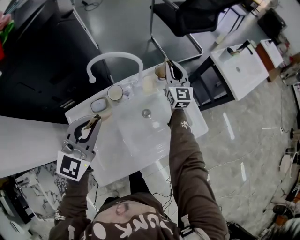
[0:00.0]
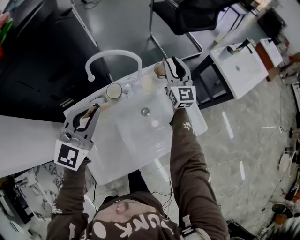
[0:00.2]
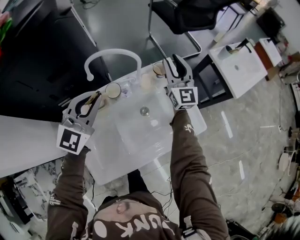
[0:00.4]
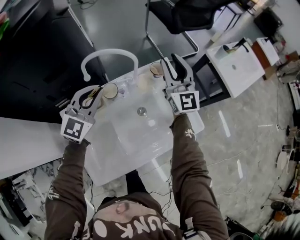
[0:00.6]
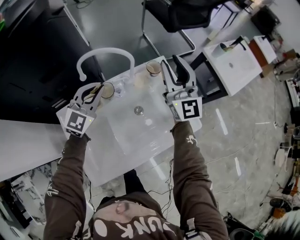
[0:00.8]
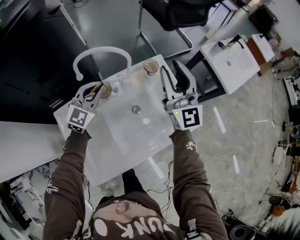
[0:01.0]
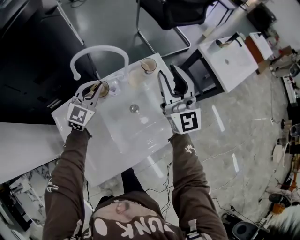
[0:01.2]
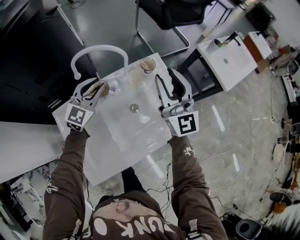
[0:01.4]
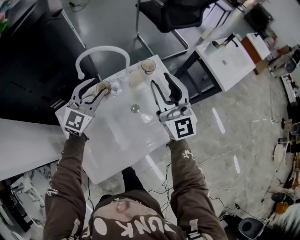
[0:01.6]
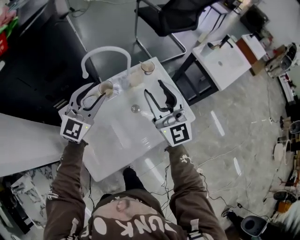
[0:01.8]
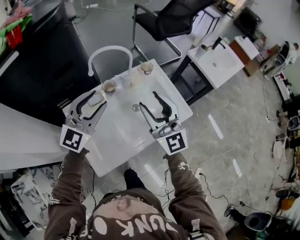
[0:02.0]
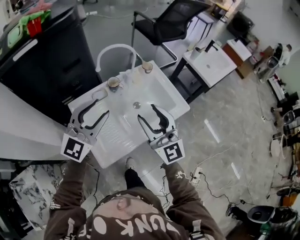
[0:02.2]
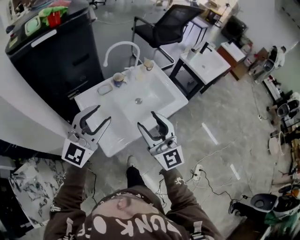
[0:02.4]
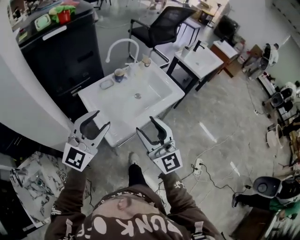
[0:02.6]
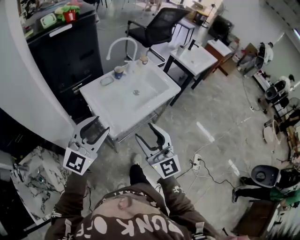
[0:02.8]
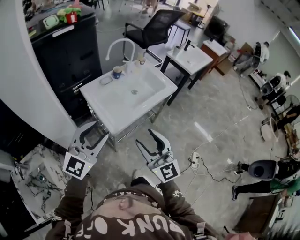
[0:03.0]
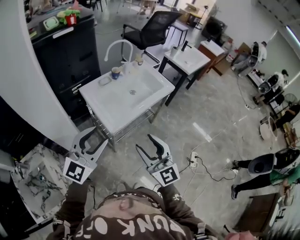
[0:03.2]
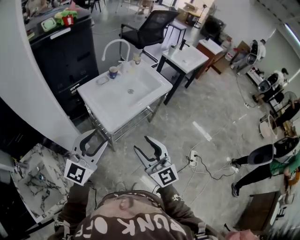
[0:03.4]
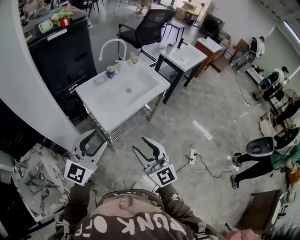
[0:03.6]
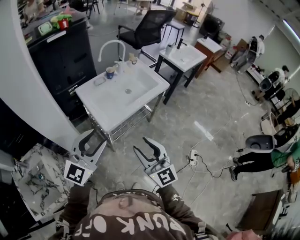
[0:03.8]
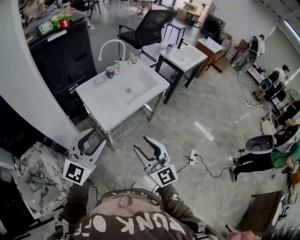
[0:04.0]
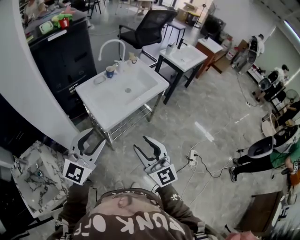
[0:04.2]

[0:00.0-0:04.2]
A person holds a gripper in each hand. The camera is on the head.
0:00.0 to 0:01.4: The right gripper is displaced backward and upward by about 20 cm, and opens up, while the left gripper shifts roughly 15 cm forward and downward.
0:01.4 to 0:02.8: The two grippers travel together, backward, about 60 cm. The left gripper turns by about 20 degrees, and opens its fingers.
0:02.8 to 0:04.2: The right gripper moves backward and to the right, about 15 cm; the left gripper moves backward, approximately 10 cm.

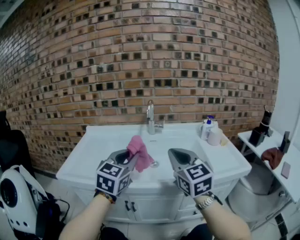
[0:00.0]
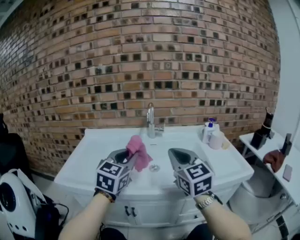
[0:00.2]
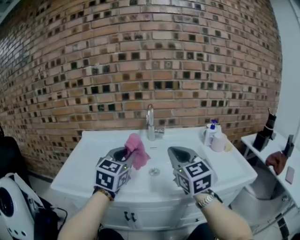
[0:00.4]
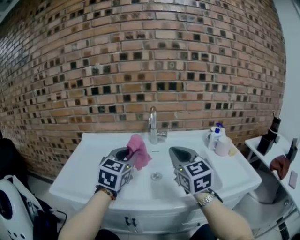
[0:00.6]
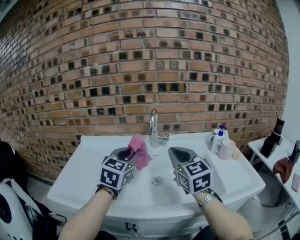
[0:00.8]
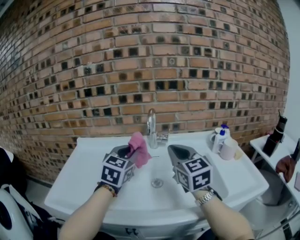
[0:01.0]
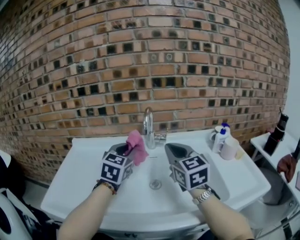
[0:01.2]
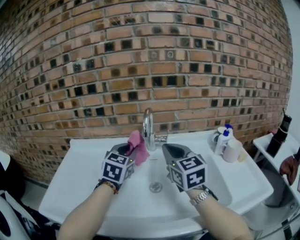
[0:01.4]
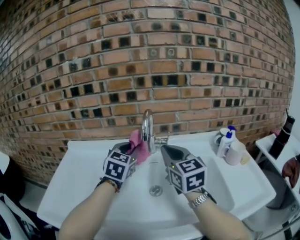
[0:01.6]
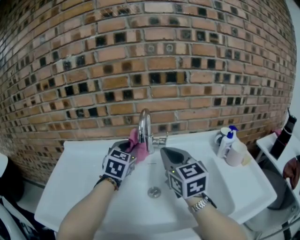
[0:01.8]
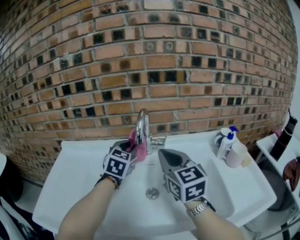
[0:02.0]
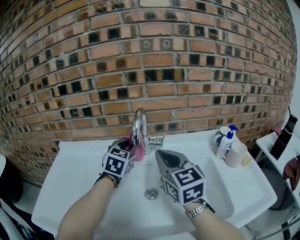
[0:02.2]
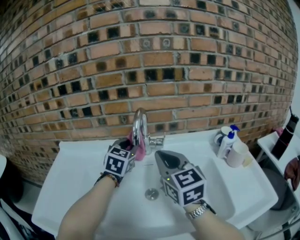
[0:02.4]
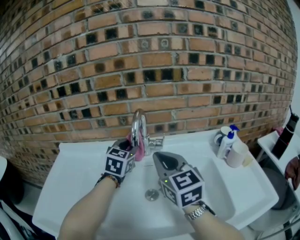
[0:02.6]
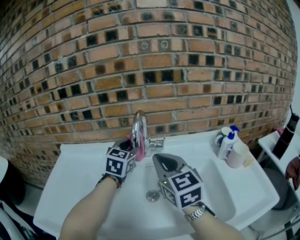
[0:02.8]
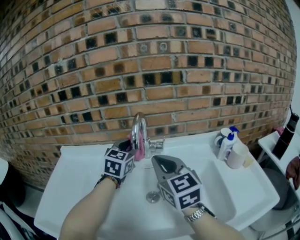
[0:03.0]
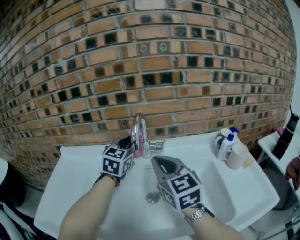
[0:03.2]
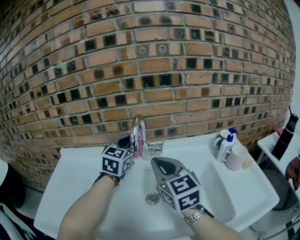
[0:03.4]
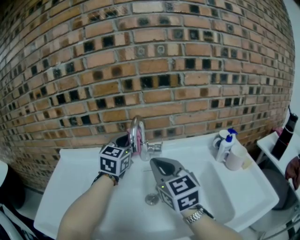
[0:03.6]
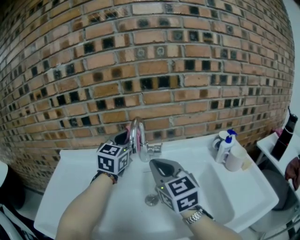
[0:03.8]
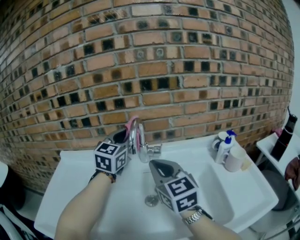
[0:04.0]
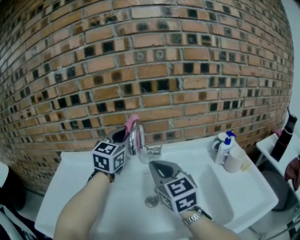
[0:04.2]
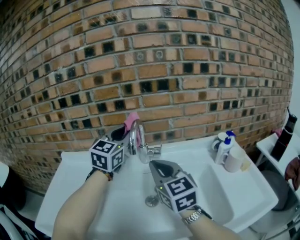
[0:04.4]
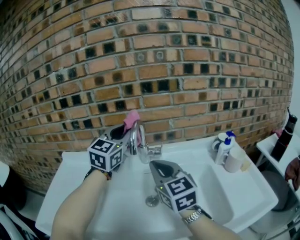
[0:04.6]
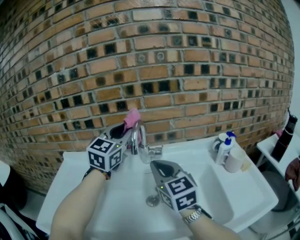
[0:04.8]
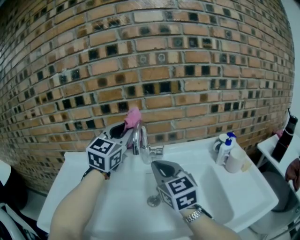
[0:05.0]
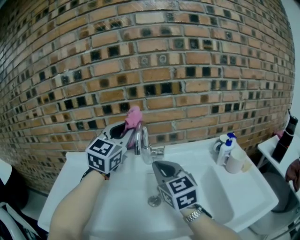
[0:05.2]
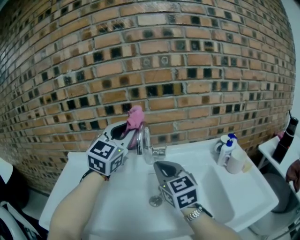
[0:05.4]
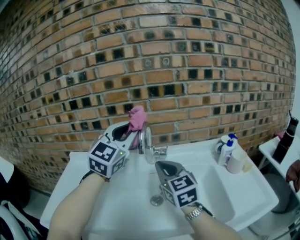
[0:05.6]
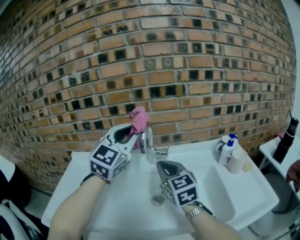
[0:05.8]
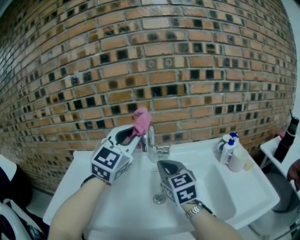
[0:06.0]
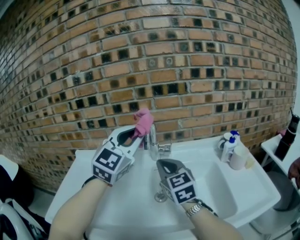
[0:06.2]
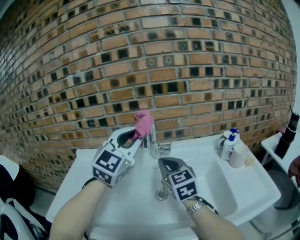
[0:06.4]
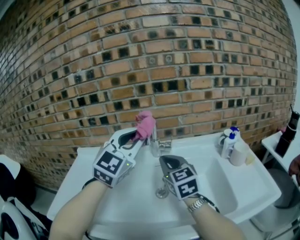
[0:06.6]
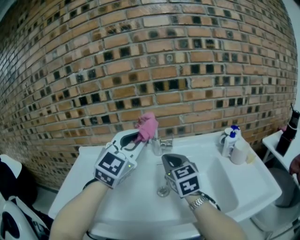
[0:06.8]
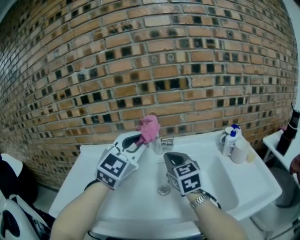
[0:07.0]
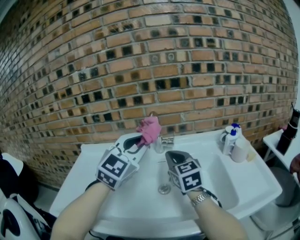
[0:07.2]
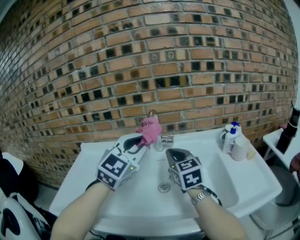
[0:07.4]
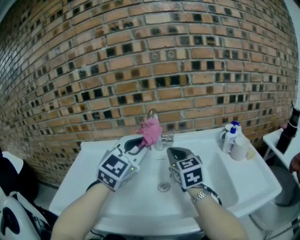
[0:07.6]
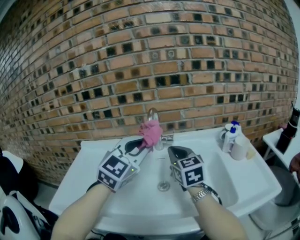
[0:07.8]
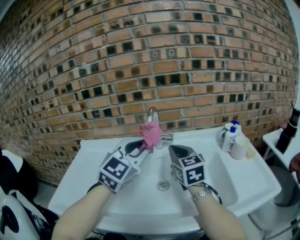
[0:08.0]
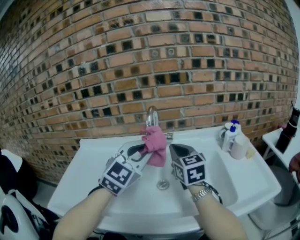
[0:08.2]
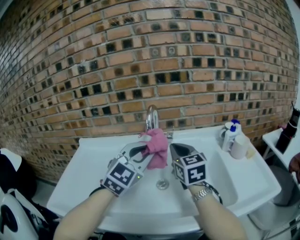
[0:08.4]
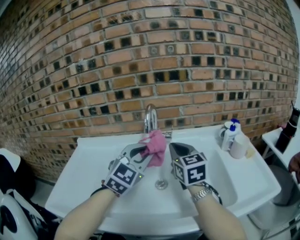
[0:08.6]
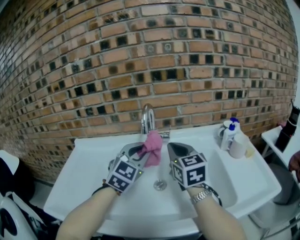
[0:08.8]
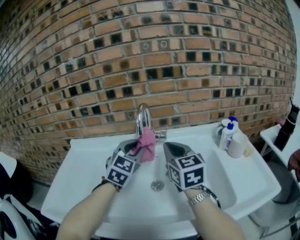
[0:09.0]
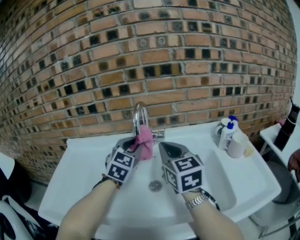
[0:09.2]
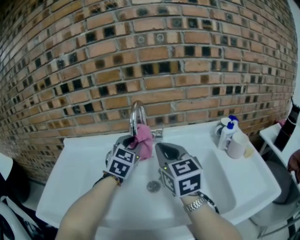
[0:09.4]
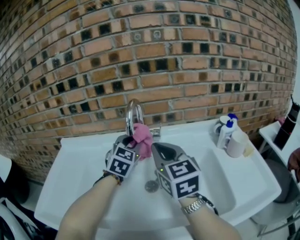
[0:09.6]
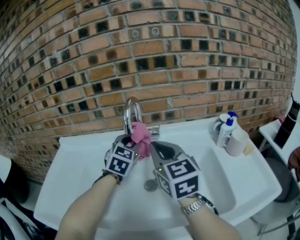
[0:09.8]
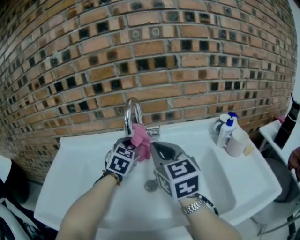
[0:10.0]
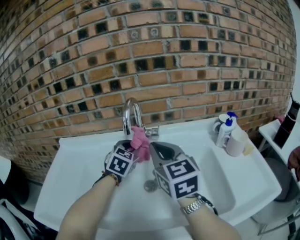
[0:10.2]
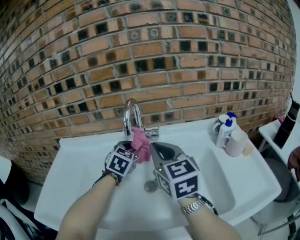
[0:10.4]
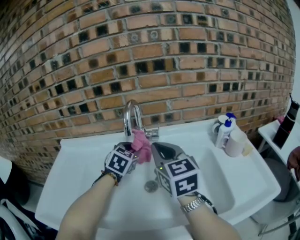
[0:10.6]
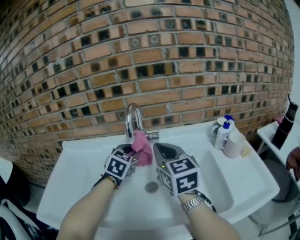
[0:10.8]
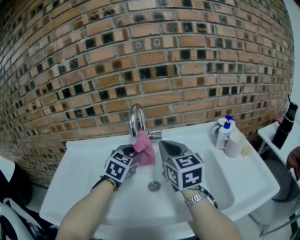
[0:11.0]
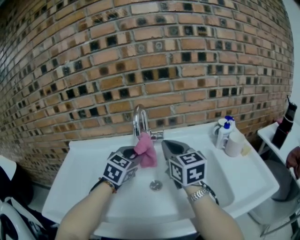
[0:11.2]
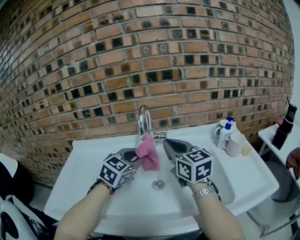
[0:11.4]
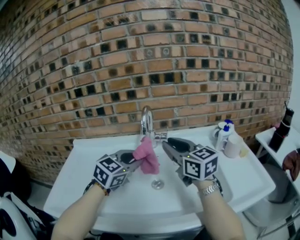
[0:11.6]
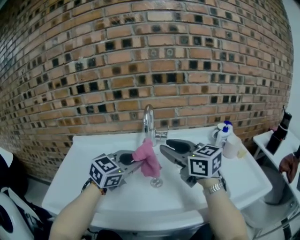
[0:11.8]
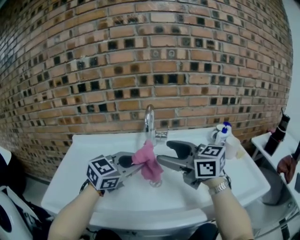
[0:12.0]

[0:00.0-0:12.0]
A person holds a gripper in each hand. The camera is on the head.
0:00.0 to 0:01.6: The two grippers go approximately 30 cm forward.
0:01.6 to 0:03.0: The left gripper travels forward by roughly 5 cm.
0:03.0 to 0:04.4: The left gripper moves upward, some 10 cm.
0:04.4 to 0:06.0: The left gripper goes some 10 cm backward and upward.
0:06.0 to 0:07.6: The left gripper travels downward and backward by about 10 cm.
0:07.6 to 0:09.0: The left gripper is displaced downward and forward by some 10 cm.
0:09.0 to 0:10.4: The left gripper shifts approximately 10 cm downward and forward.
0:10.4 to 0:12.0: The left gripper heads backward and upward, covering about 20 cm, and changes its angle by about 40 degrees. The right gripper heads backward, covering roughly 10 cm, swivels some 30 degrees, and opens its fingers.

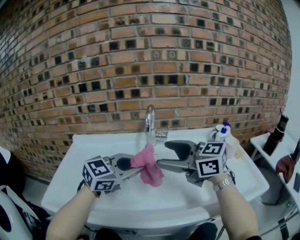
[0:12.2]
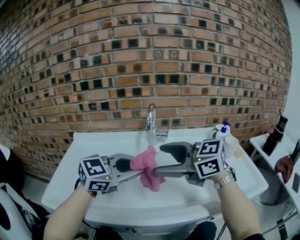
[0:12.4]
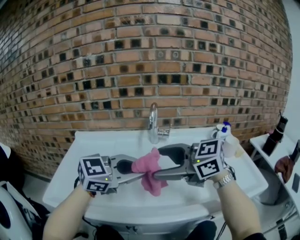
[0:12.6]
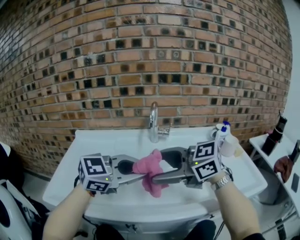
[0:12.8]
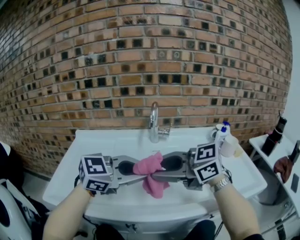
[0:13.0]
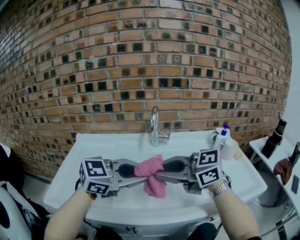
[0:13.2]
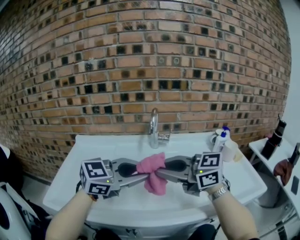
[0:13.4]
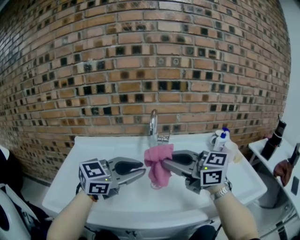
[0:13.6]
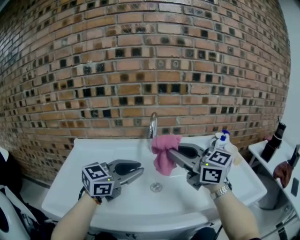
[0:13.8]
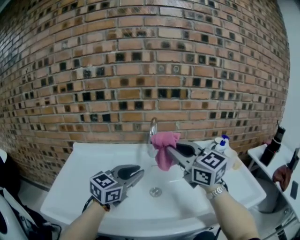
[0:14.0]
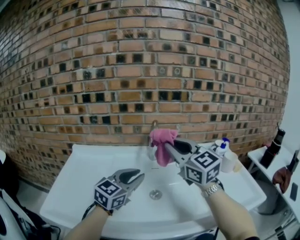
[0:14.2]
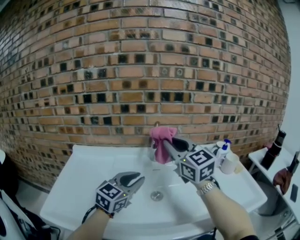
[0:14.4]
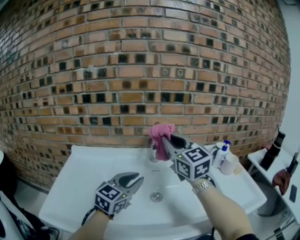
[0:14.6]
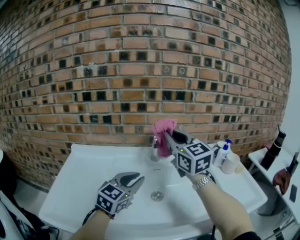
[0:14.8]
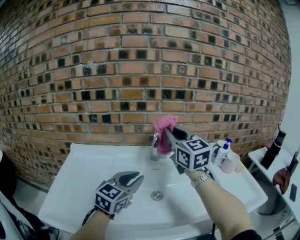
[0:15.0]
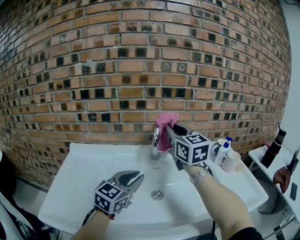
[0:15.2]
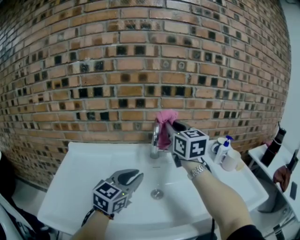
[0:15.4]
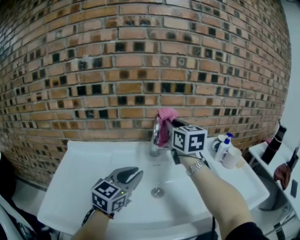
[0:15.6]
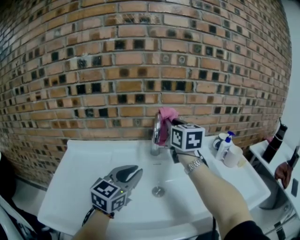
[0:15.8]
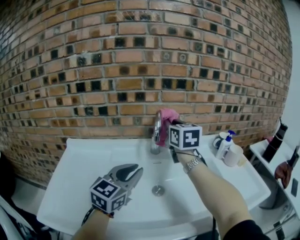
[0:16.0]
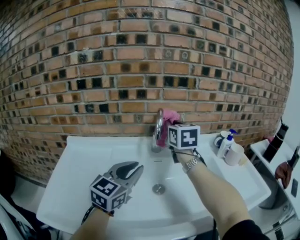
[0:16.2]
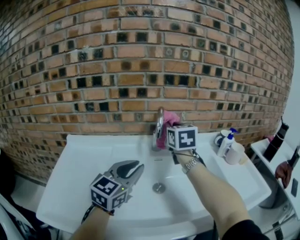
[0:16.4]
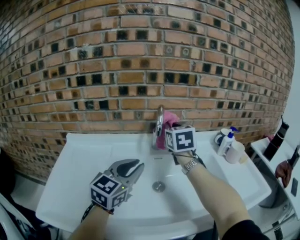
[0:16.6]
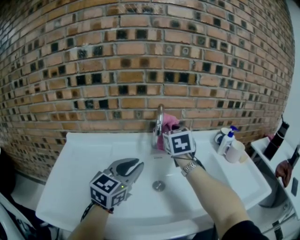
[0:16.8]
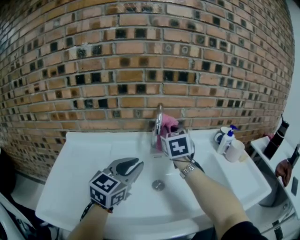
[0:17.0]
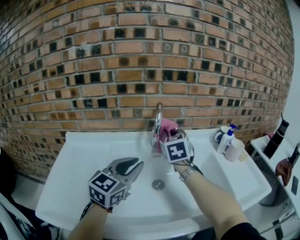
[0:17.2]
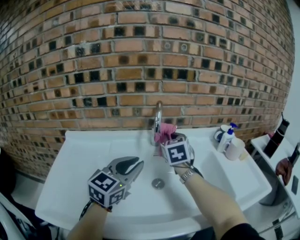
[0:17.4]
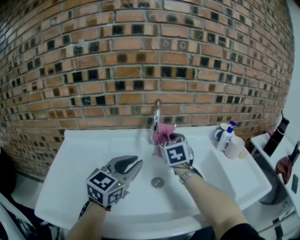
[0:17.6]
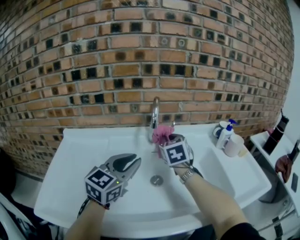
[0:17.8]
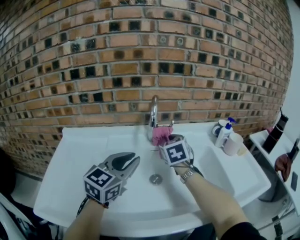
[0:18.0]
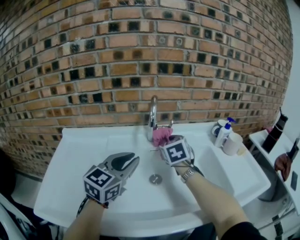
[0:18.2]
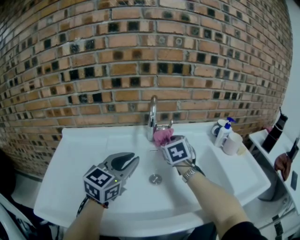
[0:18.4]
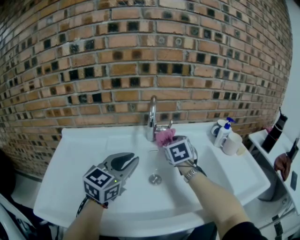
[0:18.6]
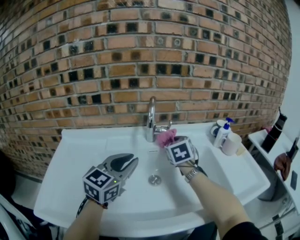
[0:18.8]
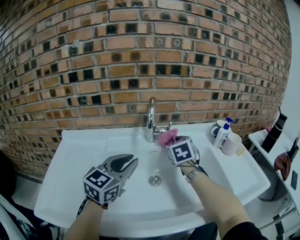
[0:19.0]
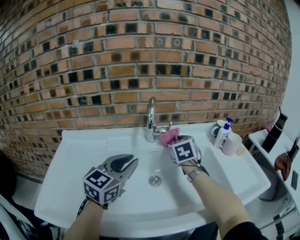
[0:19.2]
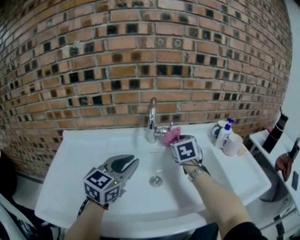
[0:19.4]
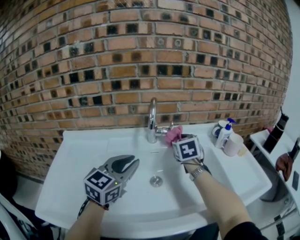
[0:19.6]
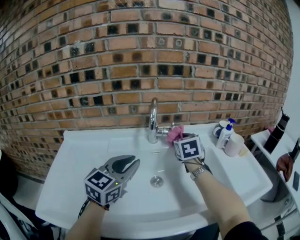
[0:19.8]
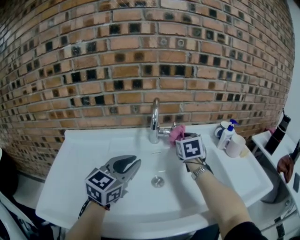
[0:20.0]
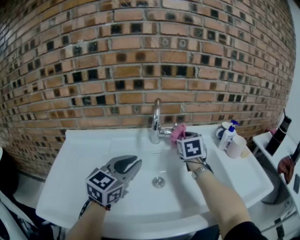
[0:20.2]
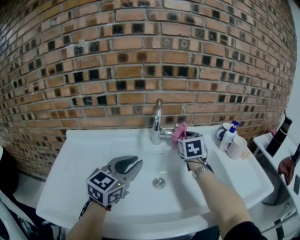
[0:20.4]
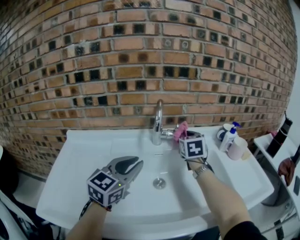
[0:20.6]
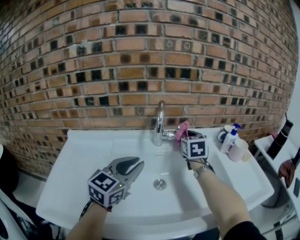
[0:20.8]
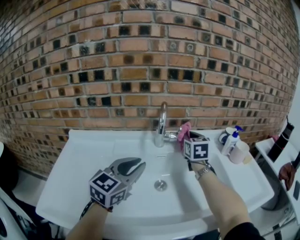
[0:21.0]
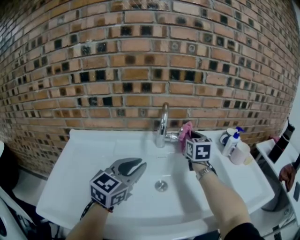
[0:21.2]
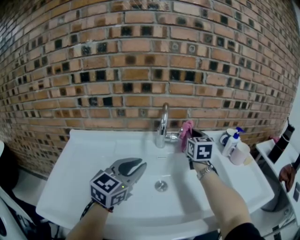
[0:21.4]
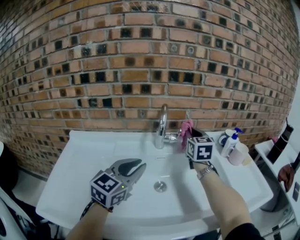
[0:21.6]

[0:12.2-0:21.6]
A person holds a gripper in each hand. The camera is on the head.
0:12.2 to 0:13.8: The right gripper closes.
0:13.8 to 0:15.4: The right gripper travels forward by some 15 cm, and changes its angle by about 30 degrees, while the left gripper travels forward by approximately 5 cm.
0:15.4 to 0:17.0: The right gripper moves downward, approximately 10 cm, and swivels about 30 degrees.
0:17.0 to 0:18.4: The right gripper goes approximately 10 cm downward.
0:18.4 to 0:20.0: The right gripper changes place by approximately 5 cm.
0:20.0 to 0:21.6: The right gripper goes approximately 5 cm upward.
